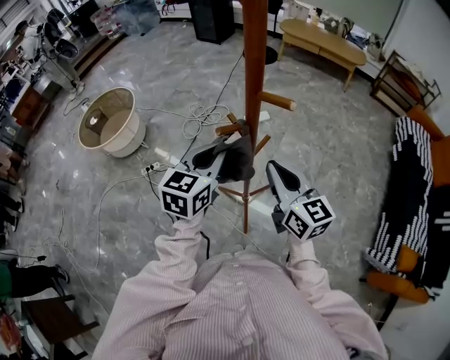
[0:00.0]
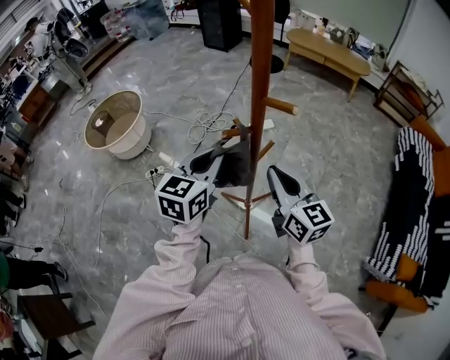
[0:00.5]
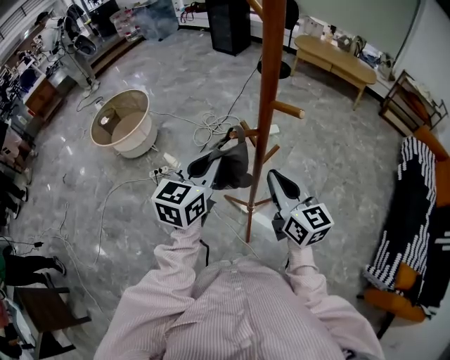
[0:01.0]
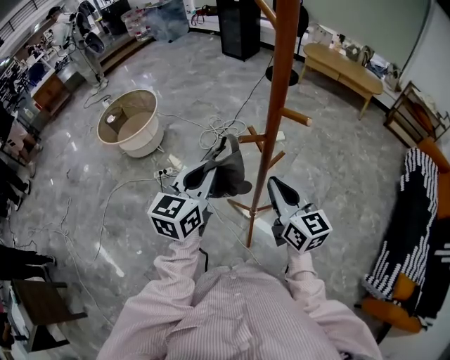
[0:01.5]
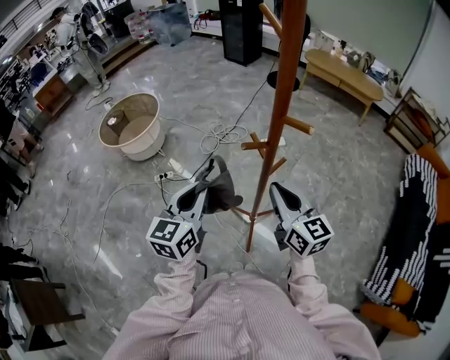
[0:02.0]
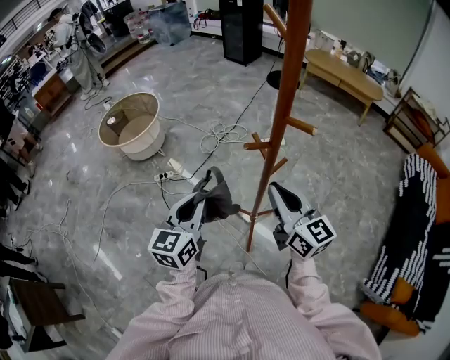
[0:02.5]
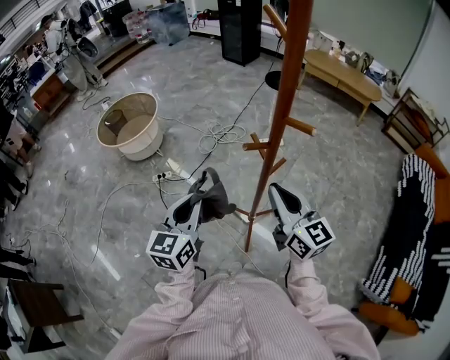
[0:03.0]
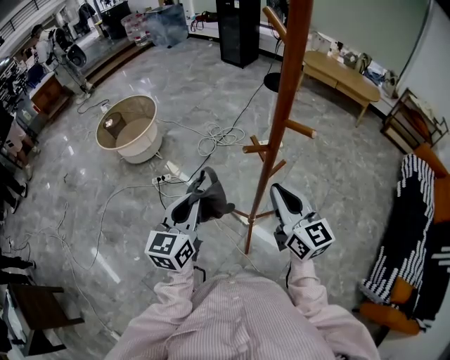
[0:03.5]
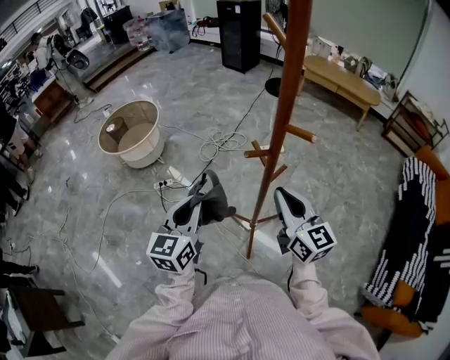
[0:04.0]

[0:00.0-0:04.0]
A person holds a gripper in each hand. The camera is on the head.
0:00.0 to 0:02.0: The left gripper moves to the left and backward, some 15 cm.
0:02.0 to 0:04.0: The grippers stay close to where they were, moving slightly.

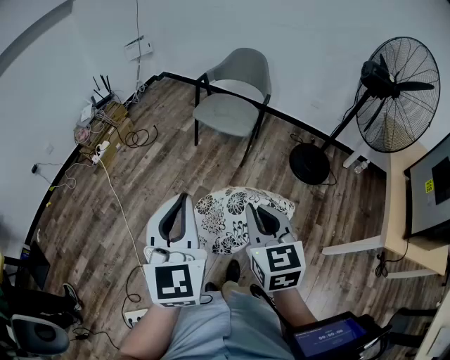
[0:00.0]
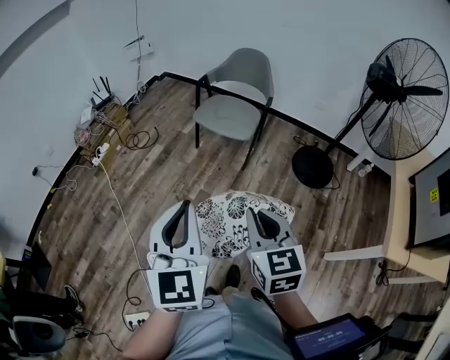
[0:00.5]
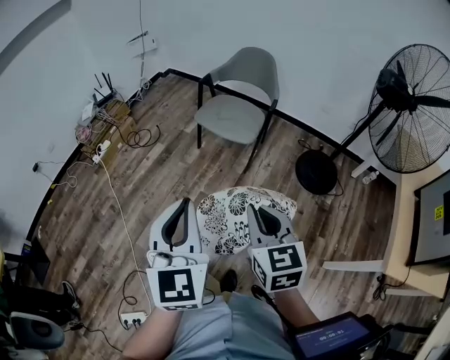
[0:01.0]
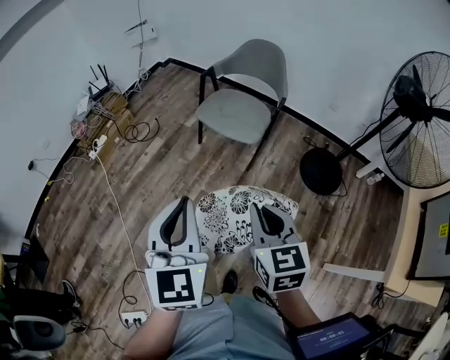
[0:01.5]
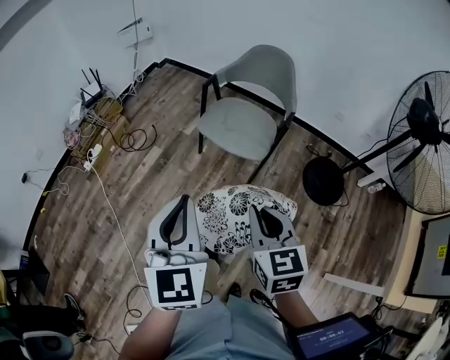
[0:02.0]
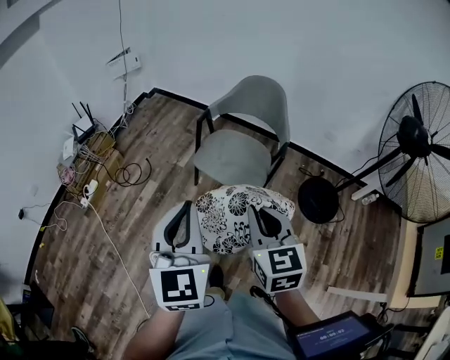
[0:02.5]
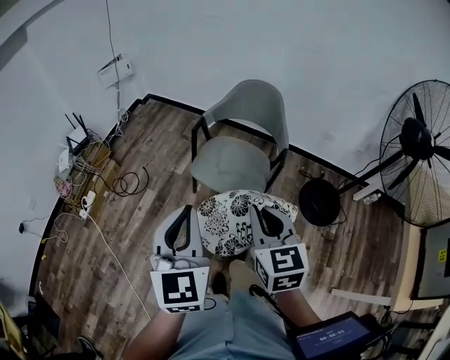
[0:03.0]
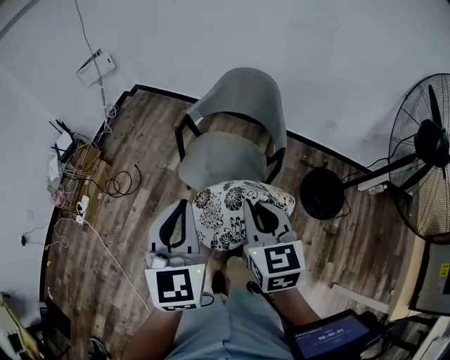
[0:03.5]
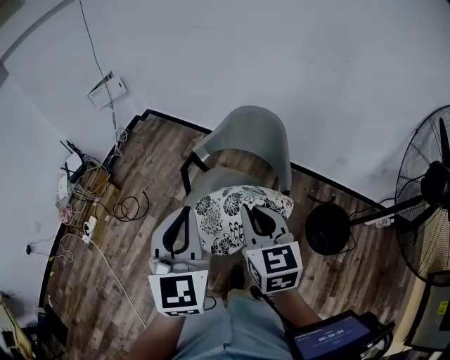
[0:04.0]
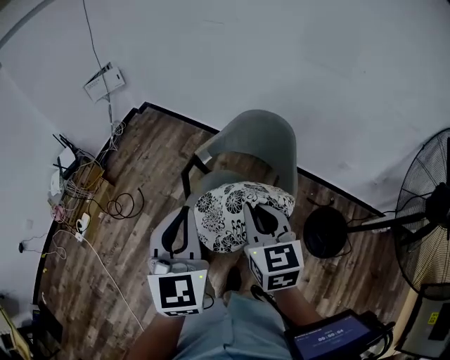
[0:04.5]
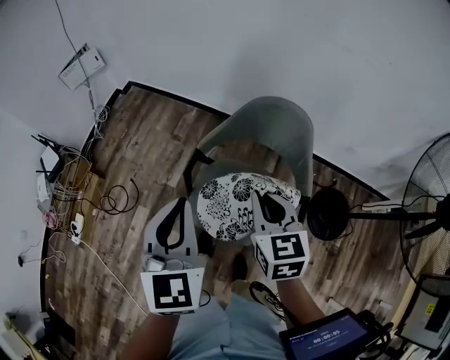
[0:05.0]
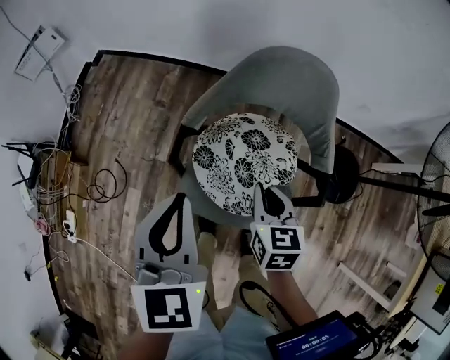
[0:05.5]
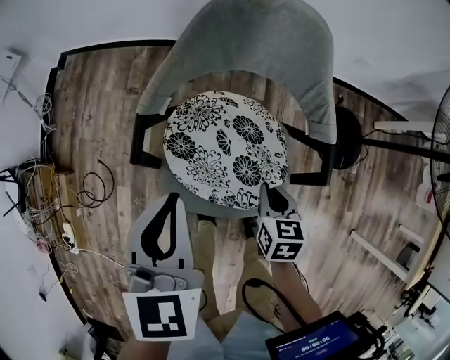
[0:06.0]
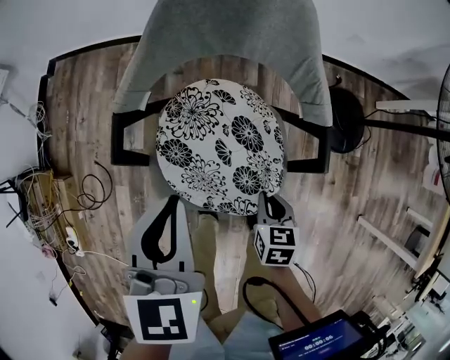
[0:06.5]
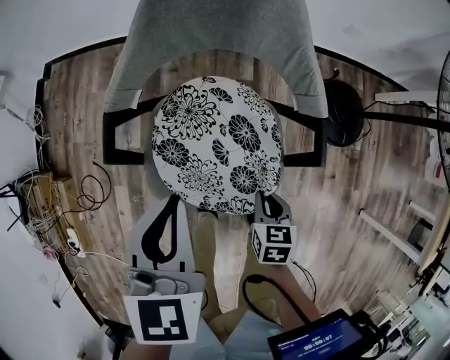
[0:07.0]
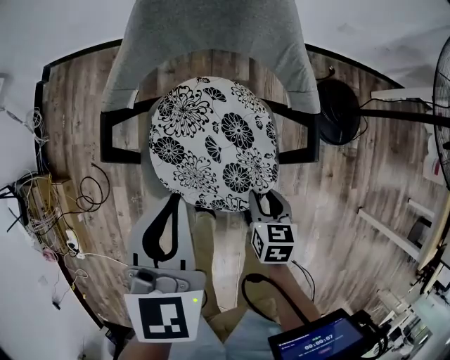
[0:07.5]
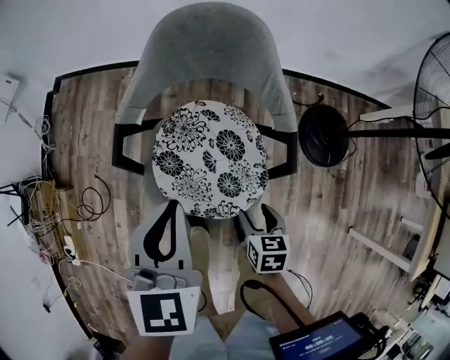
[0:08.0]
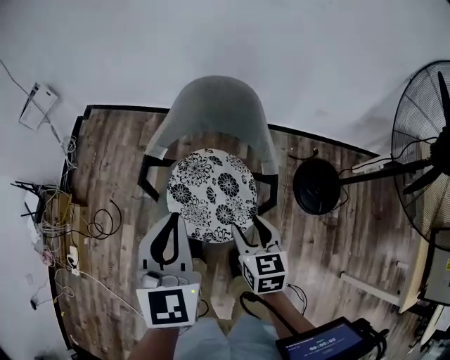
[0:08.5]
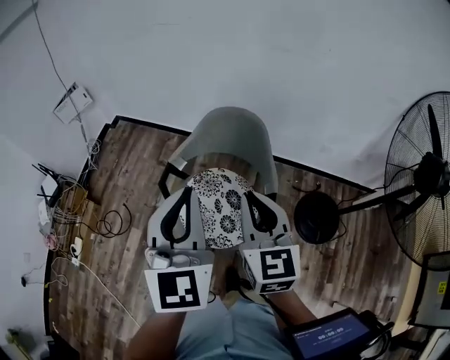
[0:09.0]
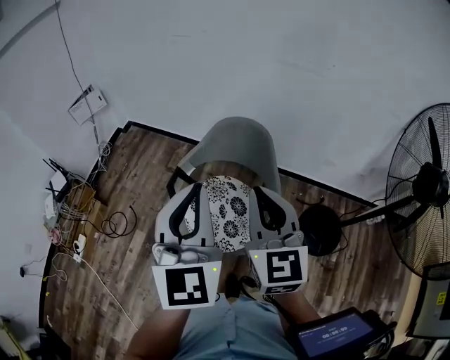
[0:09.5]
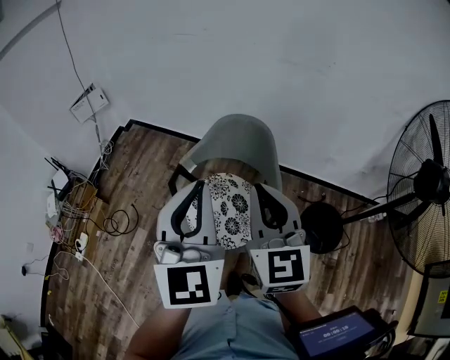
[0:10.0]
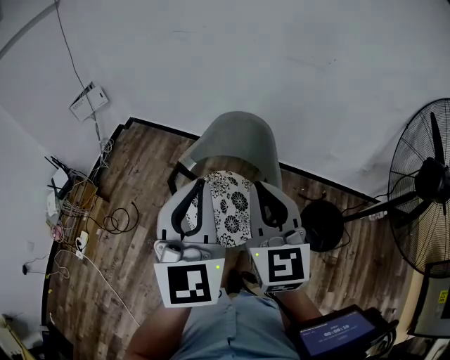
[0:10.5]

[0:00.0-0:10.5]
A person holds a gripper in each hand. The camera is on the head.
0:00.0 to 0:02.0: The two grippers go approximately 30 cm forward.
0:02.0 to 0:04.0: Both grippers move forward, approximately 40 cm.
0:04.0 to 0:06.5: The left gripper shifts approximately 30 cm downward, and changes its angle by some 40 degrees. Meanwhile the right gripper shifts roughly 50 cm downward, and angles its fingers downward, by roughly 40 degrees.
0:06.5 to 0:08.5: Both grippers move upward, some 20 cm. The right gripper rotates some 30 degrees, and opens its fingers.
0:08.5 to 0:10.5: The right gripper shifts approximately 30 cm upward, tips its fingers upward by roughly 30 degrees, and closes its fingers. The left gripper heads upward, covering roughly 20 cm, and rotates about 20 degrees.

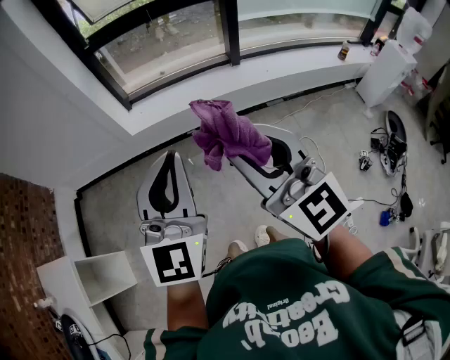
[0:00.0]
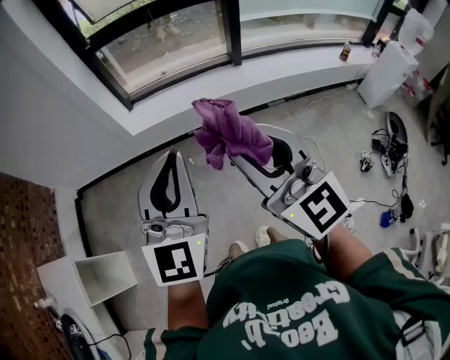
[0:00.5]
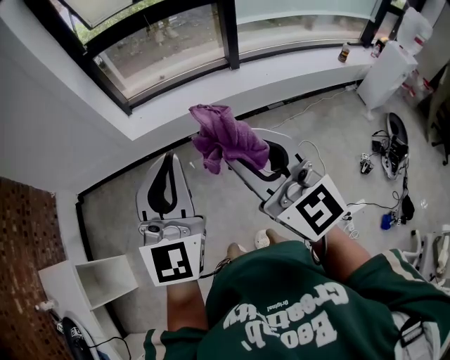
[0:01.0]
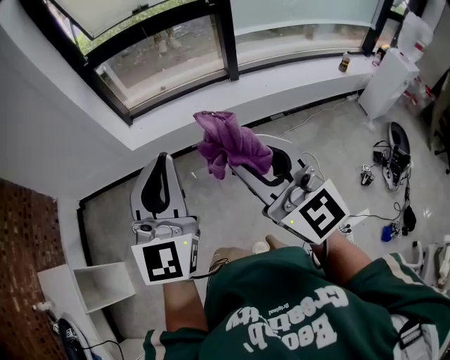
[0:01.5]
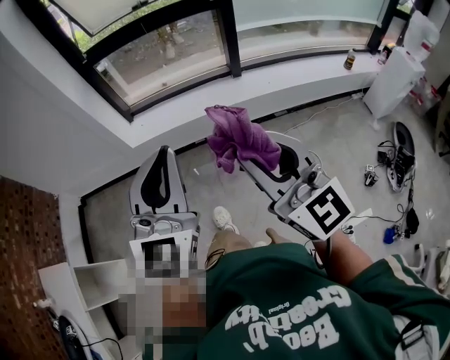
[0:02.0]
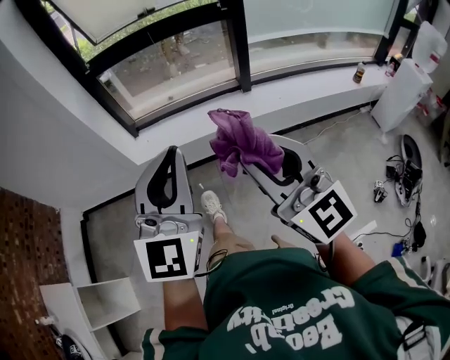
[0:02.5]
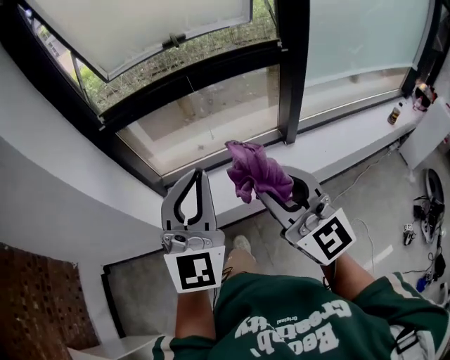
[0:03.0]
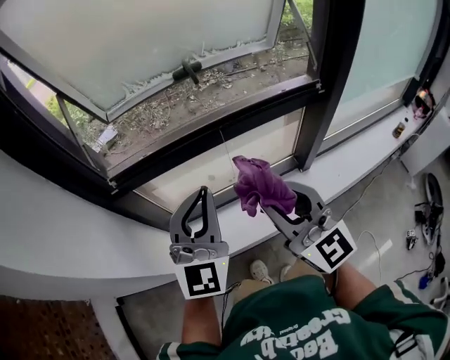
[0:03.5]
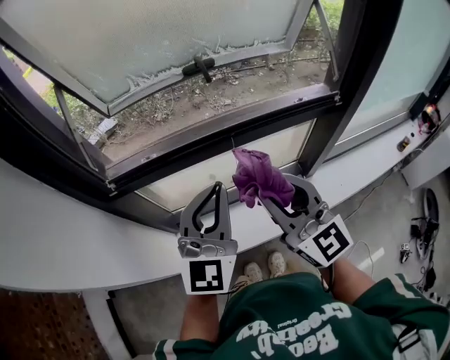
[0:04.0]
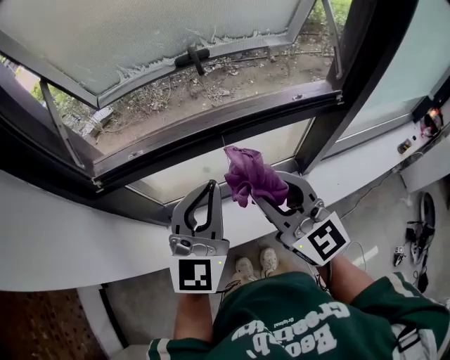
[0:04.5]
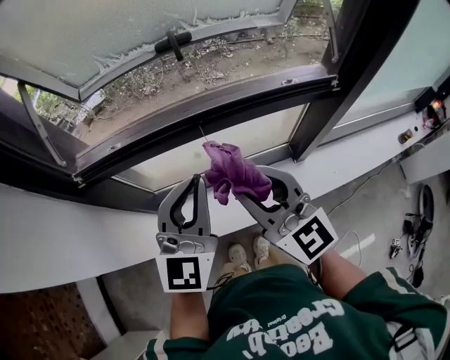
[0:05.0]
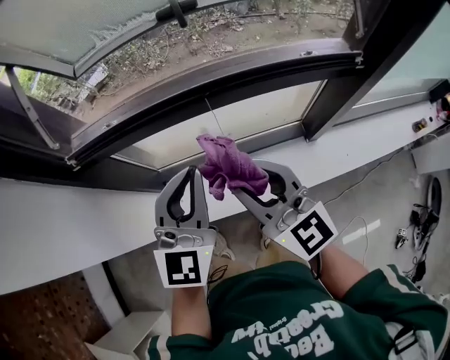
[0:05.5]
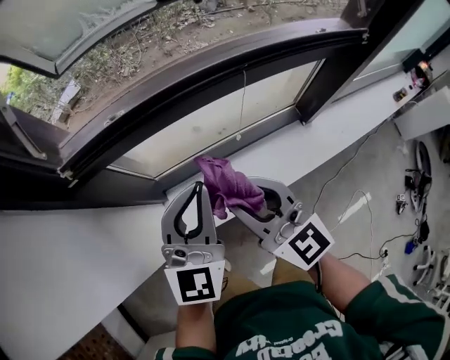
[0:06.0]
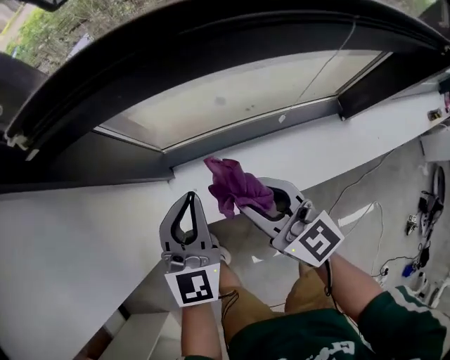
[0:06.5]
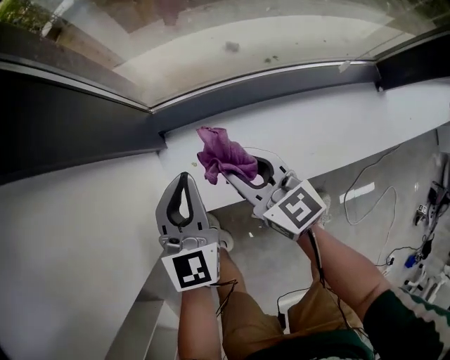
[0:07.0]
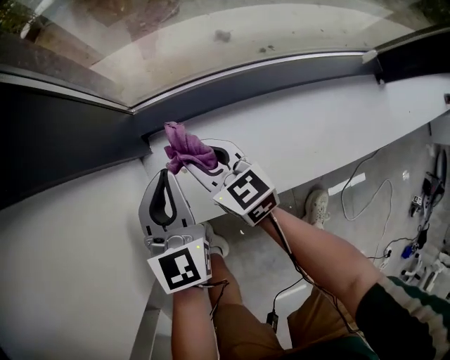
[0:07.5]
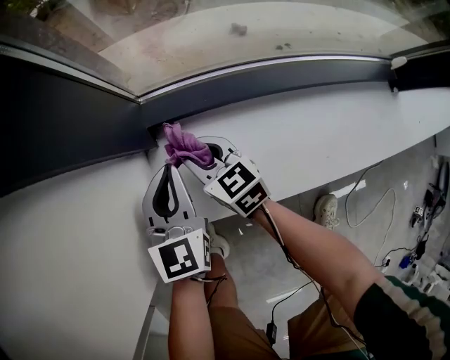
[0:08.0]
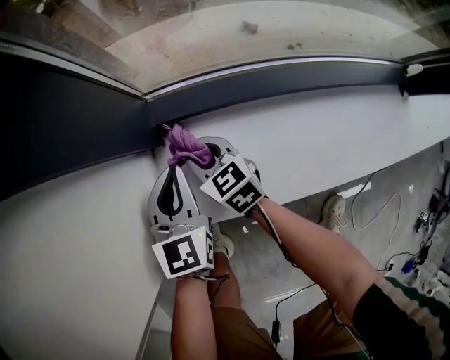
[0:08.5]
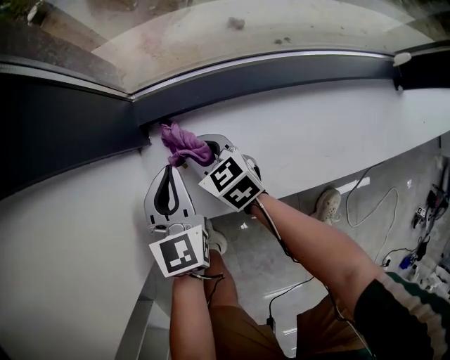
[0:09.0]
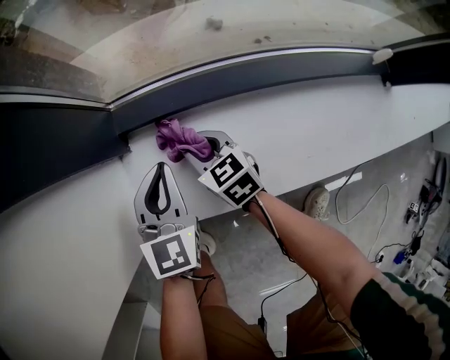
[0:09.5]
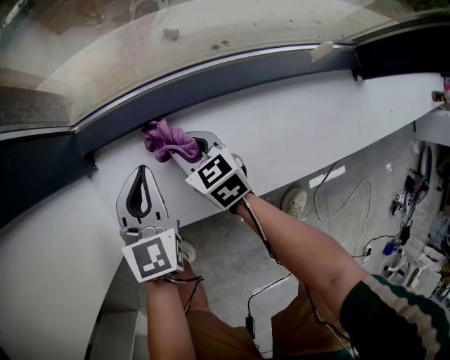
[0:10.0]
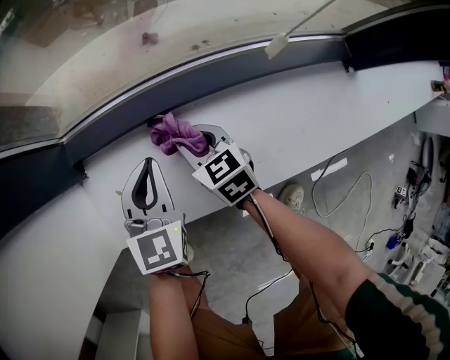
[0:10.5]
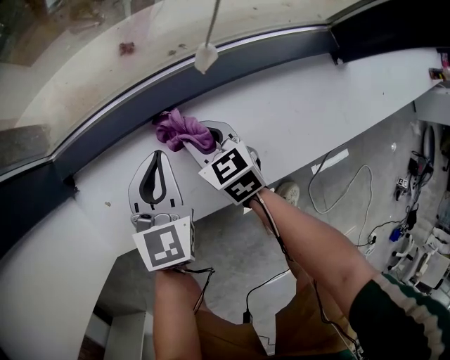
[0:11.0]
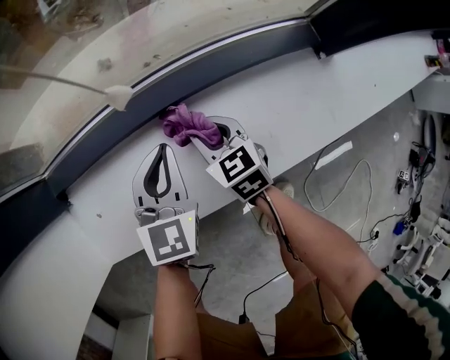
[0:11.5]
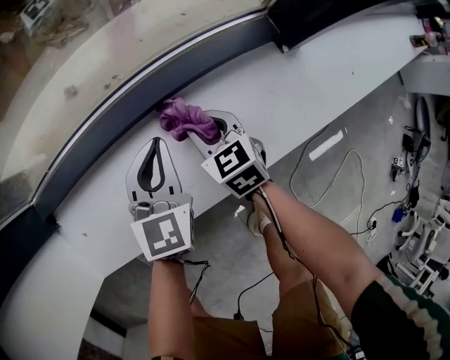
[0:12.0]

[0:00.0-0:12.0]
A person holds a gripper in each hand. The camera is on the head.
0:00.0 to 0:02.0: The grippers both shift to the right by about 10 cm.
0:02.0 to 0:04.0: Both grippers are carried forward, approximately 80 cm.
0:04.0 to 0:06.0: Both grippers travel together downward and to the left, approximately 20 cm.
0:06.0 to 0:08.0: The right gripper is displaced downward by roughly 60 cm, and changes its angle by approximately 30 degrees. The left gripper moves downward and to the left, roughly 50 cm, and changes its angle by about 40 degrees.
0:08.0 to 0:10.0: Both grippers travel together to the right, roughly 15 cm.
0:10.0 to 0:12.0: The two grippers go approximately 30 cm to the right.
